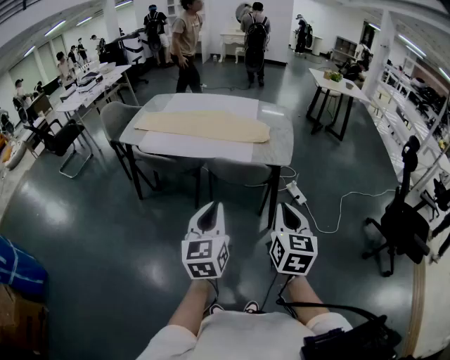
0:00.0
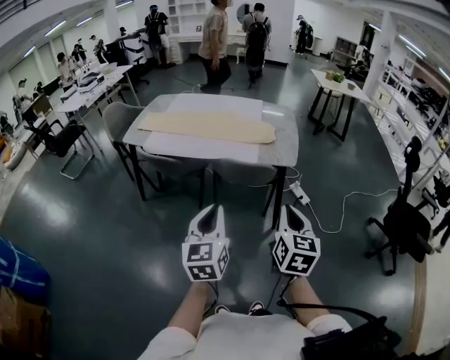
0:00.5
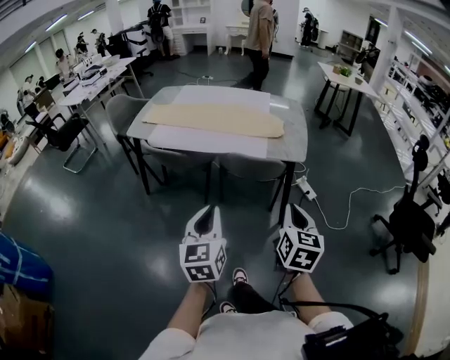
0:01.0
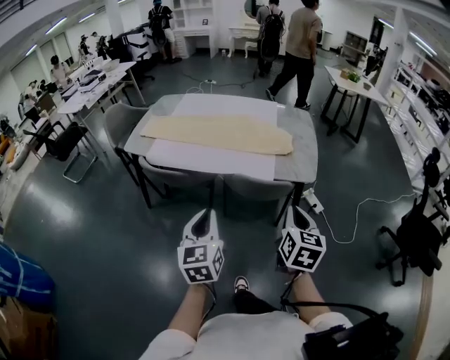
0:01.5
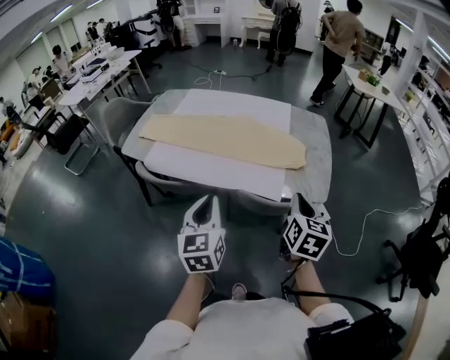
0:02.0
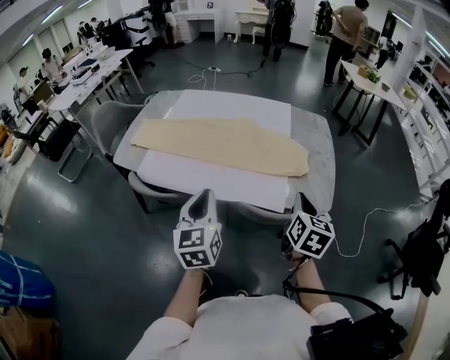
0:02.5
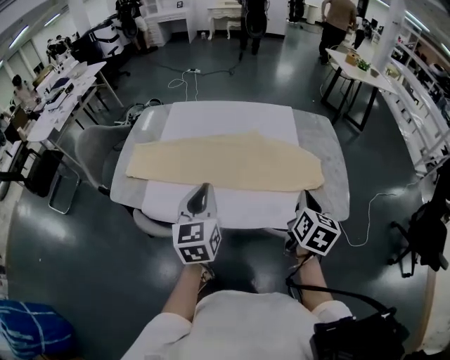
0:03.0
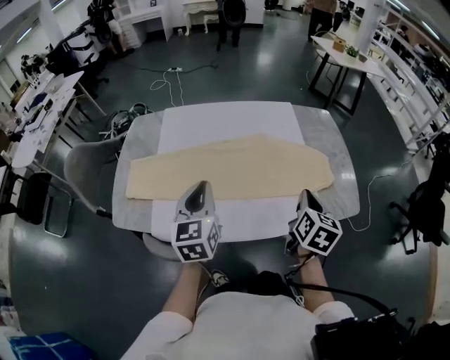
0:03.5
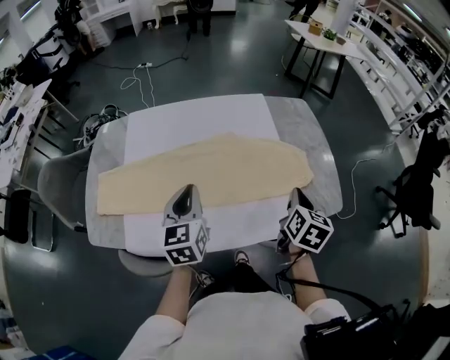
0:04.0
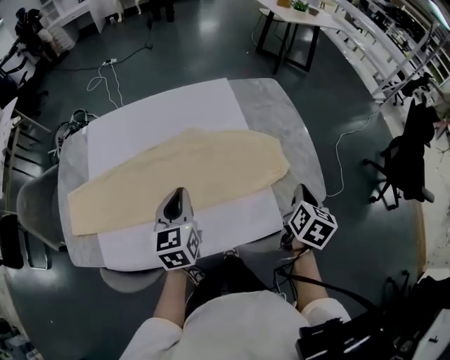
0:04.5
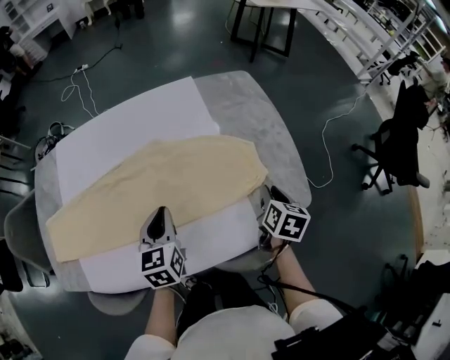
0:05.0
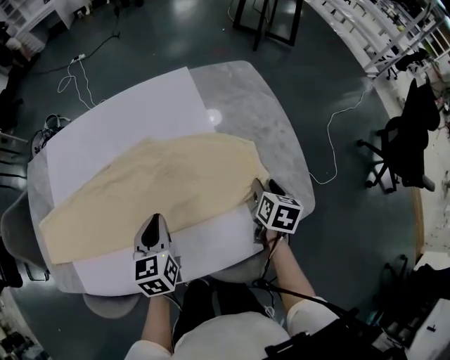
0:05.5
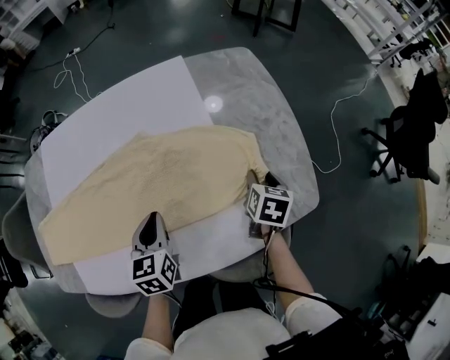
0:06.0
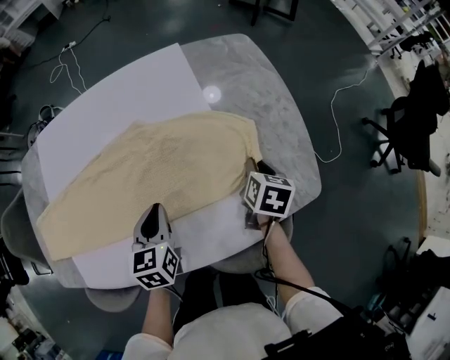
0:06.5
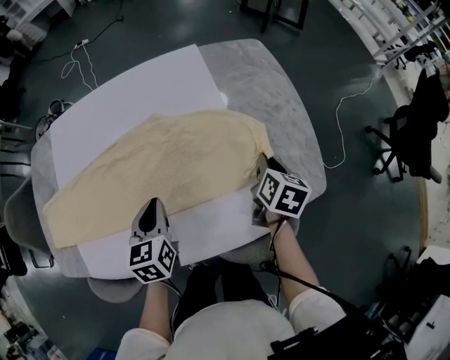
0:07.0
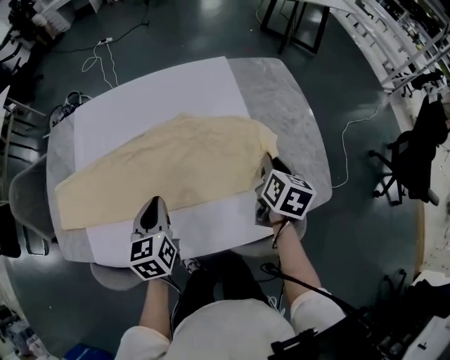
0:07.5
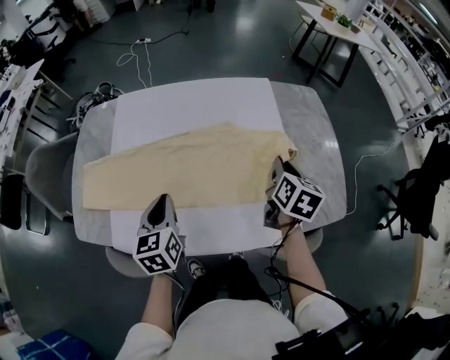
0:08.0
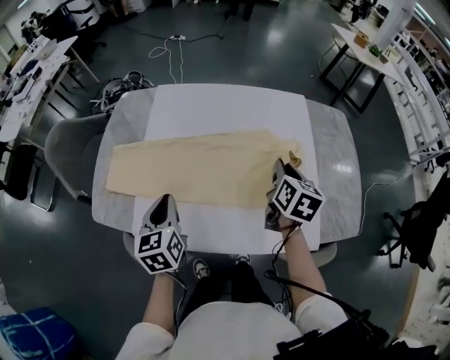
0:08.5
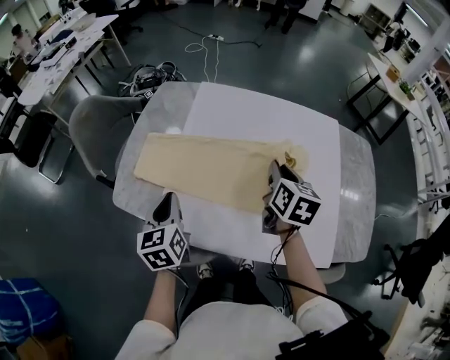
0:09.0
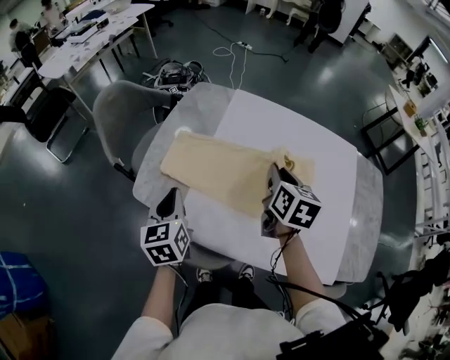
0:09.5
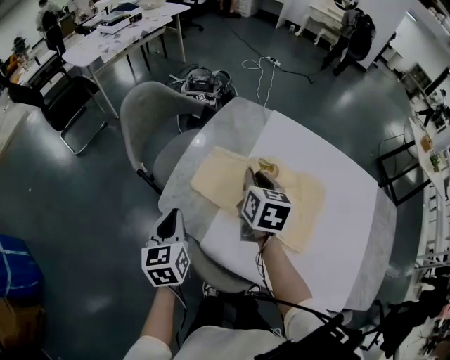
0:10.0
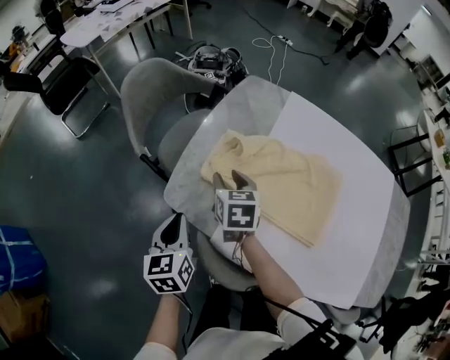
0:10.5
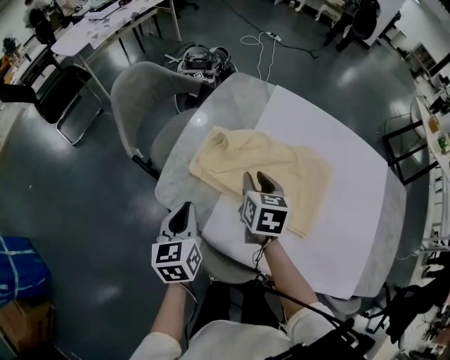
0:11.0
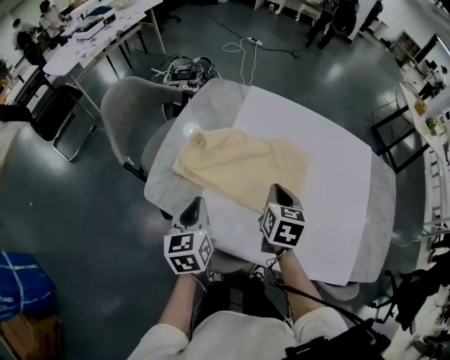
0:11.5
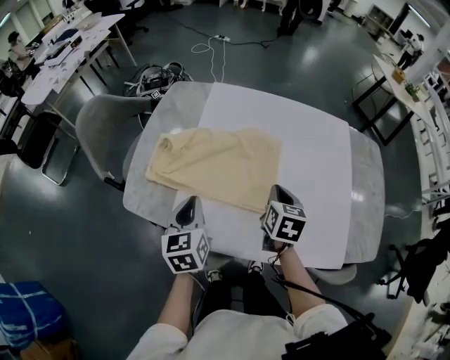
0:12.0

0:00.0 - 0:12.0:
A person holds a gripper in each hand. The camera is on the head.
0:00.0 - 0:02.0: The right gripper moves forward, approximately 35 cm, while the left gripper goes about 35 cm forward and to the left.
0:02.0 - 0:04.0: The right gripper travels forward and to the left by some 30 cm, and turns by roughly 30 degrees. Meanwhile the left gripper travels forward and to the left by roughly 40 cm, and swivels some 20 degrees.
0:04.0 - 0:06.0: The right gripper heads downward, forward and to the right, covering about 30 cm, turns by roughly 20 degrees, and opens. Meanwhile the left gripper heads downward, to the right and forward, covering about 25 cm.
0:06.0 - 0:08.0: The left gripper shifts approximately 25 cm to the left, upward and backward. The right gripper is displaced to the left and upward by approximately 25 cm, rotates some 20 degrees, and closes up.
0:08.0 - 0:10.0: The pair of grippers is taken approximately 50 cm. The right gripper turns by some 40 degrees. The left gripper turns by some 30 degrees.
0:10.0 - 0:12.0: The left gripper moves to the right, some 20 cm; the right gripper moves to the right and backward, approximately 30 cm, rotates some 20 degrees, and opens, then closes once more.

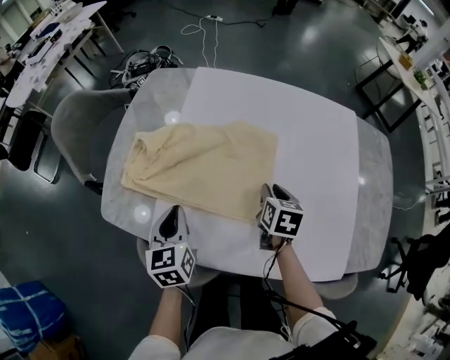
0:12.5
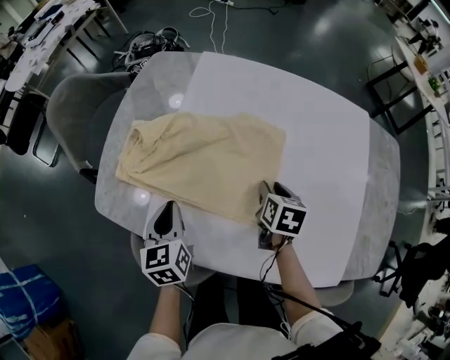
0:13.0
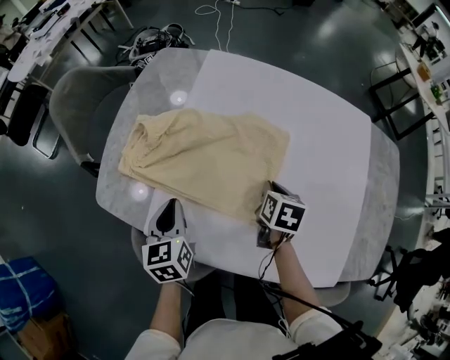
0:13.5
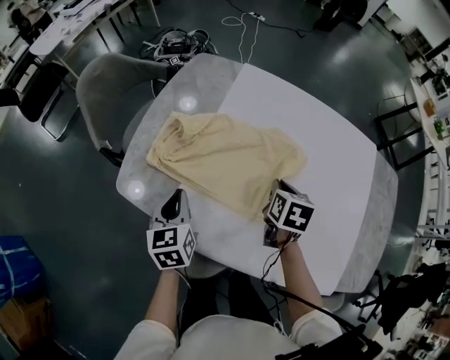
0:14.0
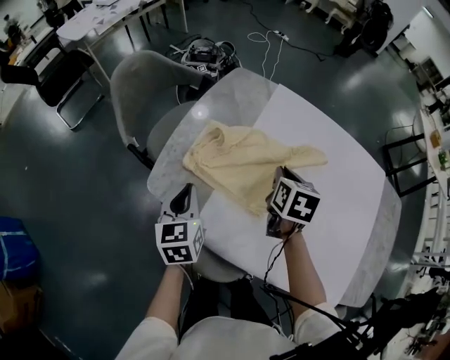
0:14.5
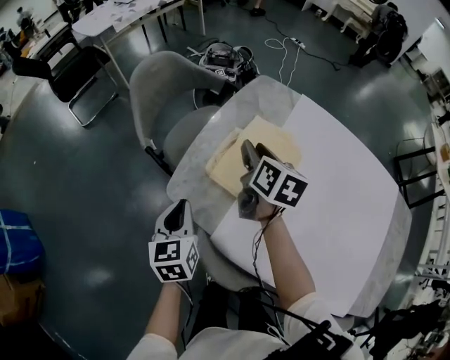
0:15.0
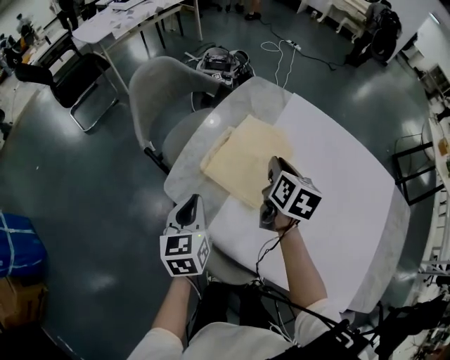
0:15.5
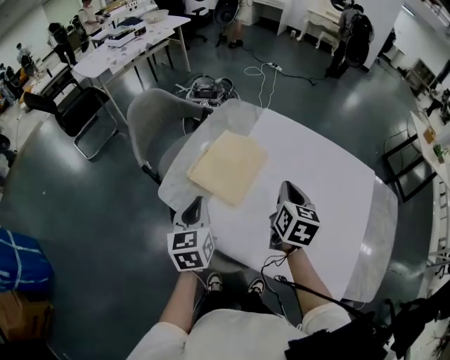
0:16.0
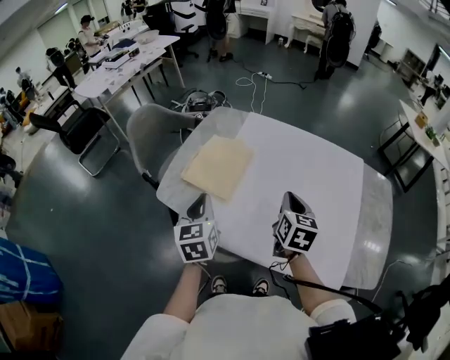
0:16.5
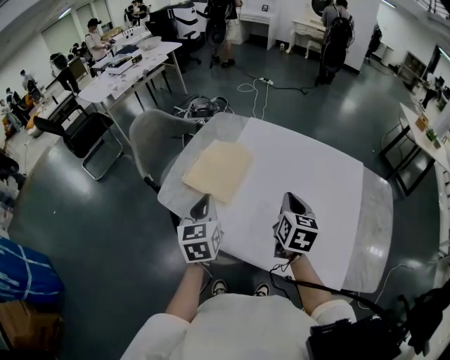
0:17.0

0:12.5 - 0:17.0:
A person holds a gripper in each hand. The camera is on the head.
0:12.5 - 0:14.5: The right gripper shifts about 25 cm to the left, upward and forward; the left gripper heads to the left, covering roughly 15 cm.
0:14.5 - 0:17.0: The right gripper heads backward, upward and to the right, covering some 25 cm, rotates about 20 degrees, and opens, then closes once more, while the left gripper heads upward, to the right and backward, covering about 25 cm.

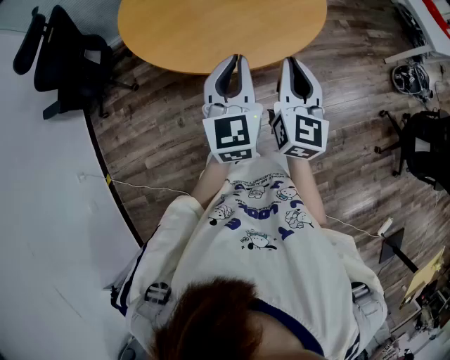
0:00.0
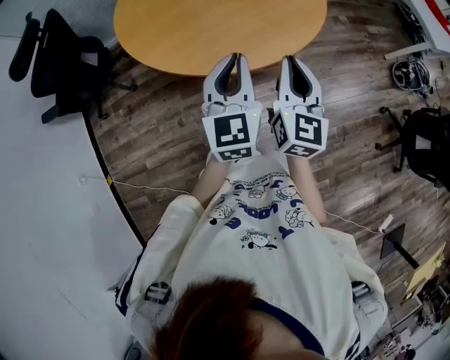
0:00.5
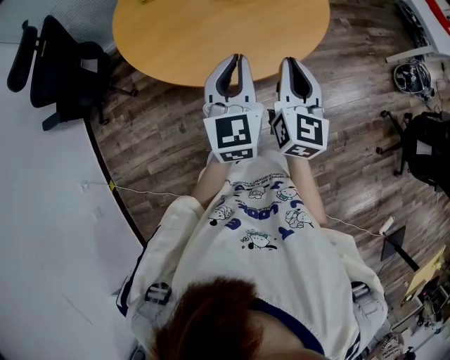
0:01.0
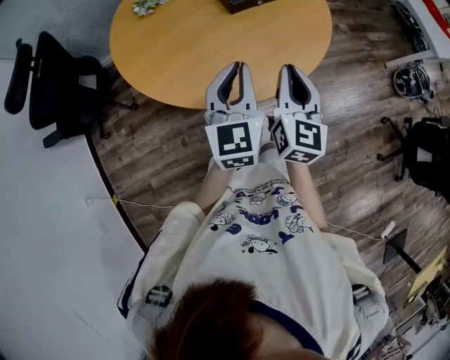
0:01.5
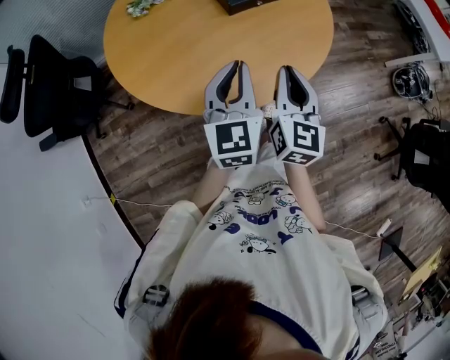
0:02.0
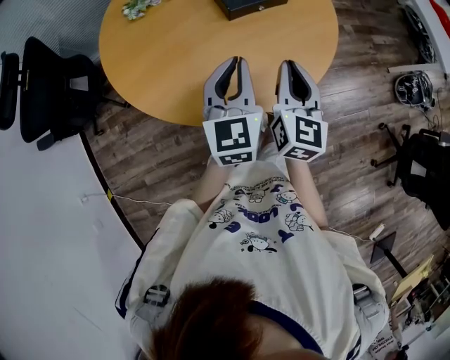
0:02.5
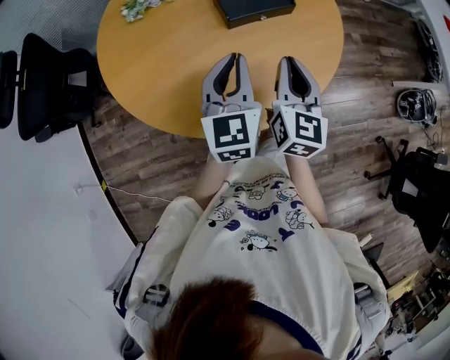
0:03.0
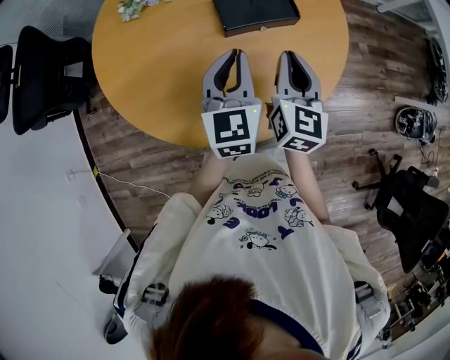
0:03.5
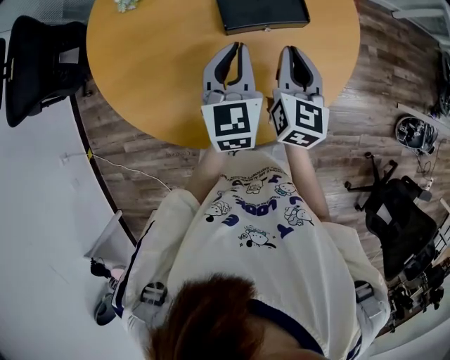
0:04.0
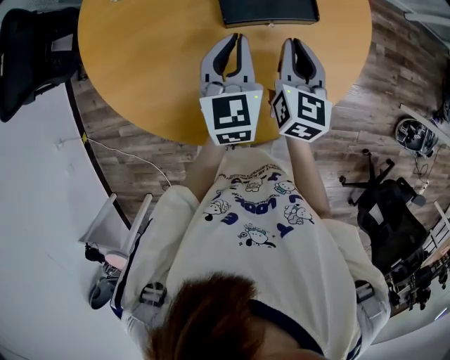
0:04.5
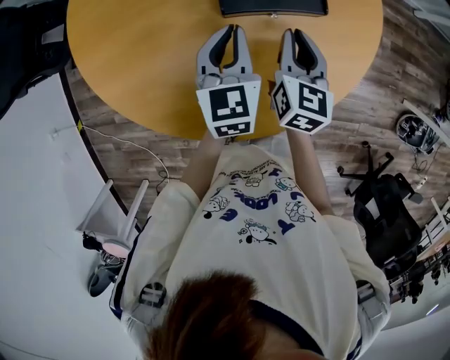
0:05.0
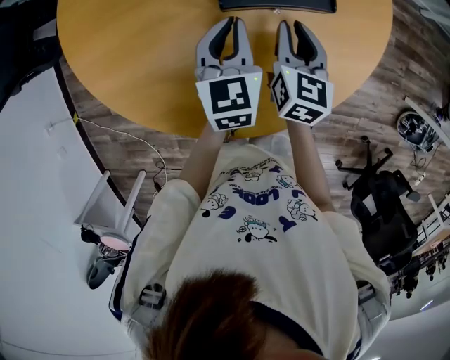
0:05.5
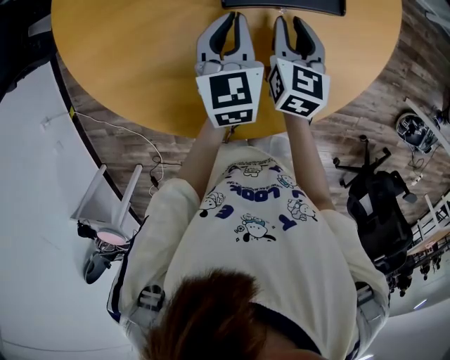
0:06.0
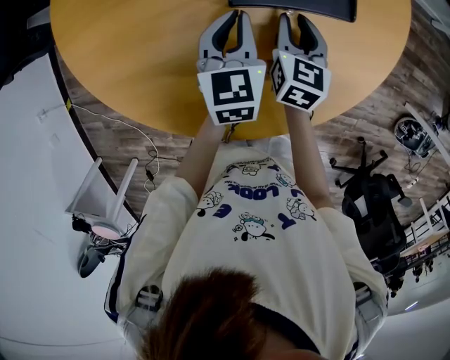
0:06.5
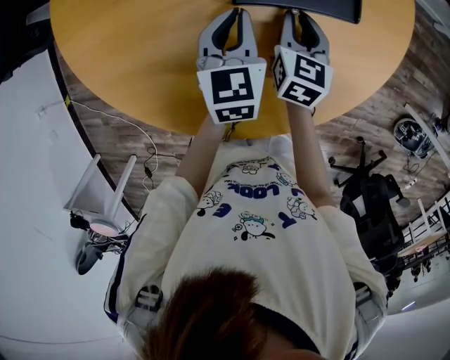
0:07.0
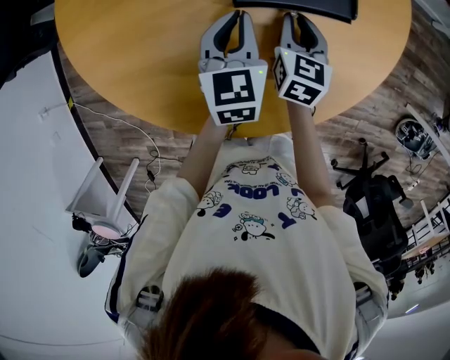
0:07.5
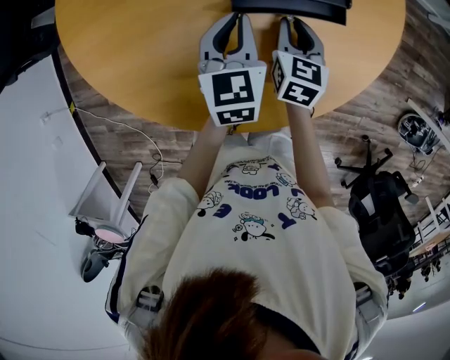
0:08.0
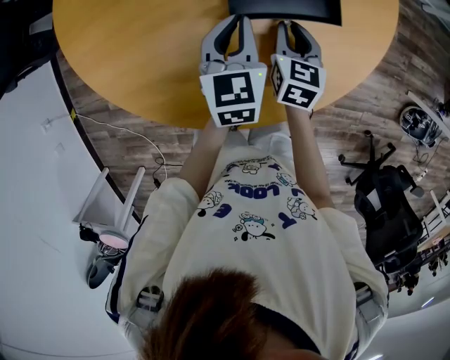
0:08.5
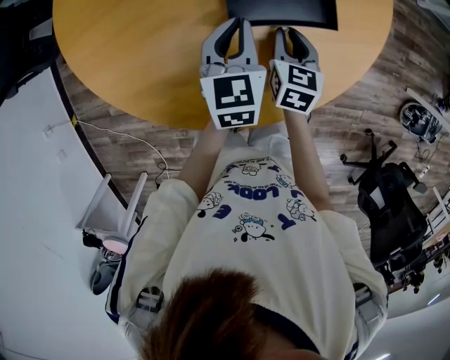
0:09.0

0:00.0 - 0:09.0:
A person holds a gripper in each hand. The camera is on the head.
0:00.0 - 0:02.0: Both grippers move forward, roughly 15 cm.
0:02.0 - 0:04.5: Both grippers travel together forward, approximately 30 cm. The left gripper rotates approximately 20 degrees, while the right gripper changes its angle by about 20 degrees.
0:04.5 - 0:07.0: The left gripper moves downward, some 10 cm; the right gripper shifts roughly 15 cm downward and forward.
0:07.0 - 0:09.0: The left gripper is displaced backward by approximately 5 cm; the right gripper moves backward, roughly 10 cm.

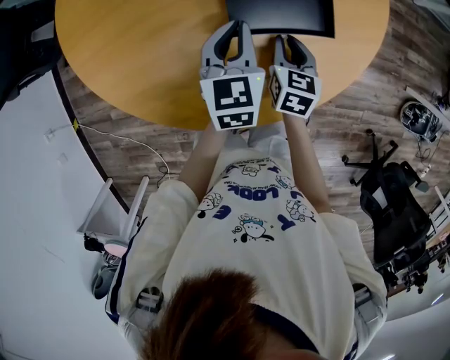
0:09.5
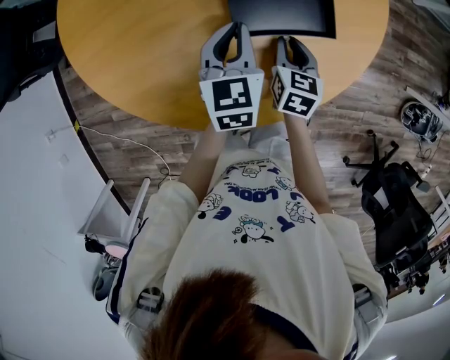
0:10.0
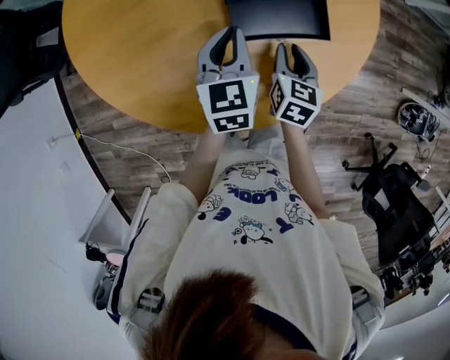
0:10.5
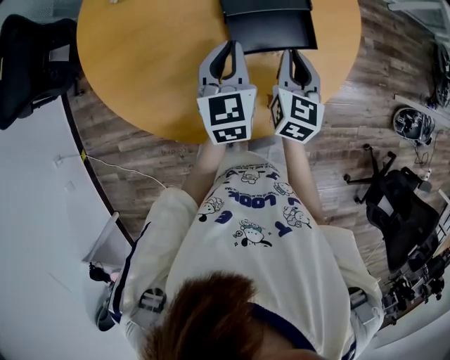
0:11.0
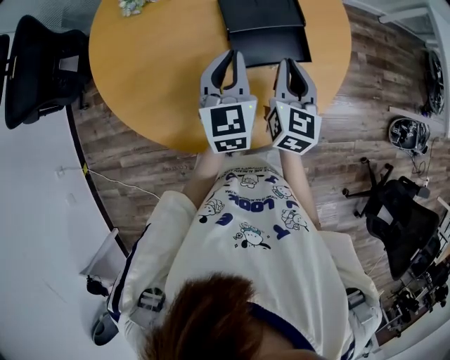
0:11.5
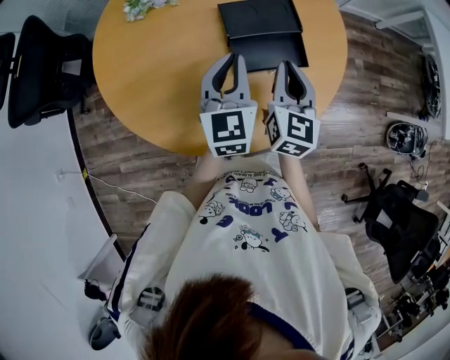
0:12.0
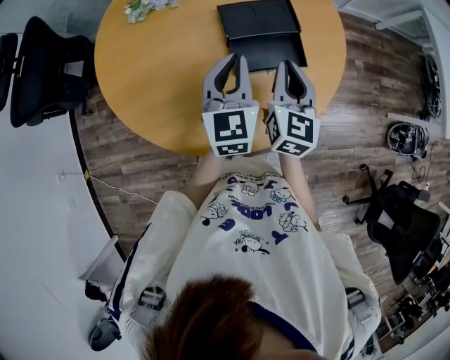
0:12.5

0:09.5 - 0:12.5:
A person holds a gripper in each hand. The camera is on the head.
0:09.5 - 0:11.0: The left gripper shifts approximately 5 cm upward. Meanwhile the right gripper travels upward by about 15 cm.
0:11.0 - 0:12.5: Both grippers move upward, some 10 cm.
